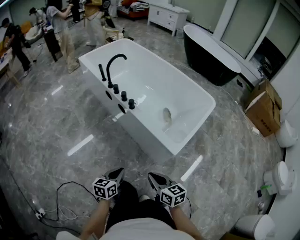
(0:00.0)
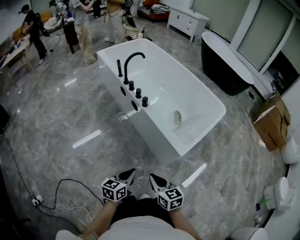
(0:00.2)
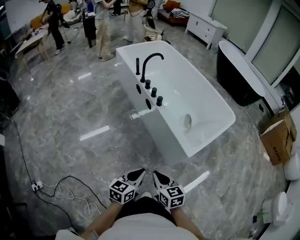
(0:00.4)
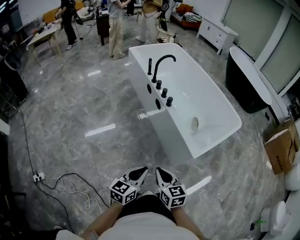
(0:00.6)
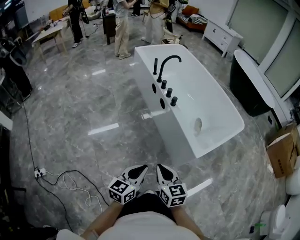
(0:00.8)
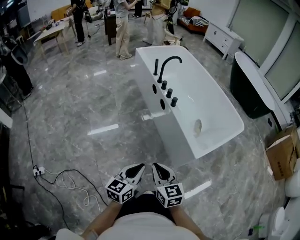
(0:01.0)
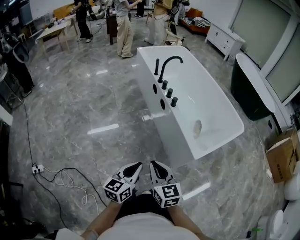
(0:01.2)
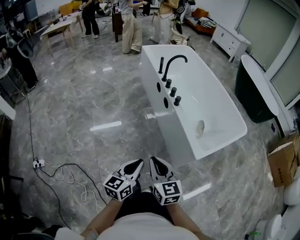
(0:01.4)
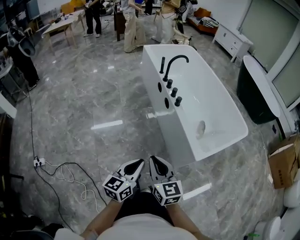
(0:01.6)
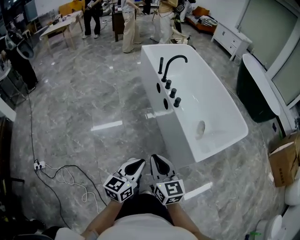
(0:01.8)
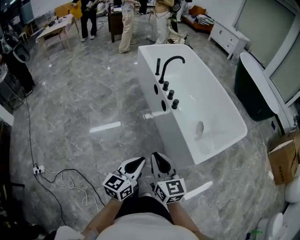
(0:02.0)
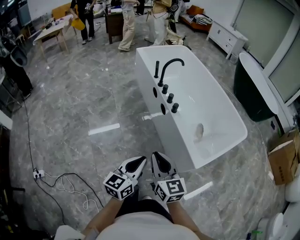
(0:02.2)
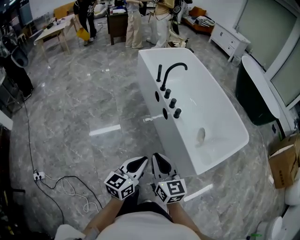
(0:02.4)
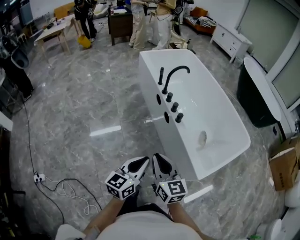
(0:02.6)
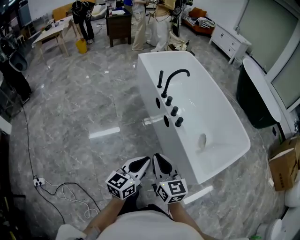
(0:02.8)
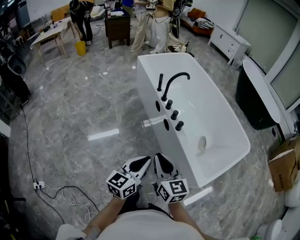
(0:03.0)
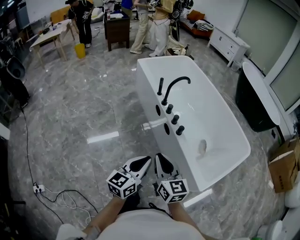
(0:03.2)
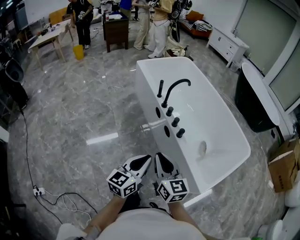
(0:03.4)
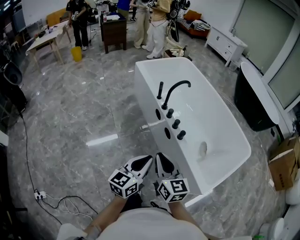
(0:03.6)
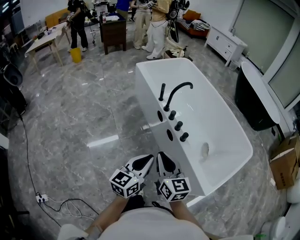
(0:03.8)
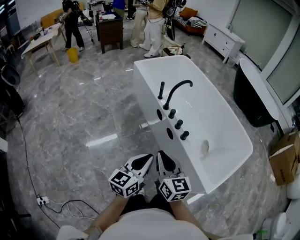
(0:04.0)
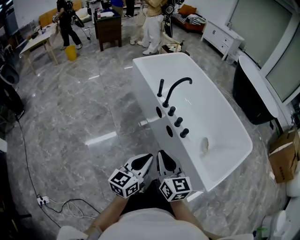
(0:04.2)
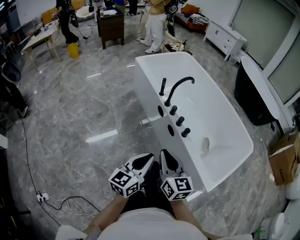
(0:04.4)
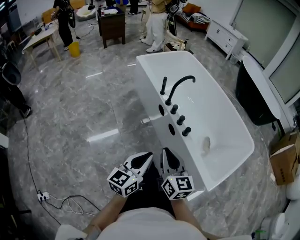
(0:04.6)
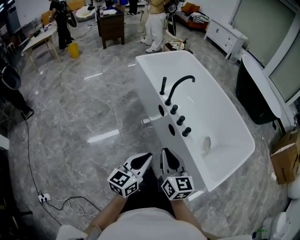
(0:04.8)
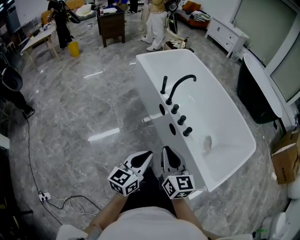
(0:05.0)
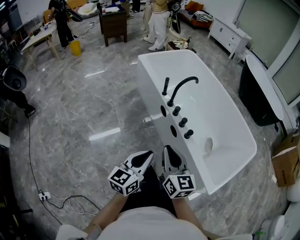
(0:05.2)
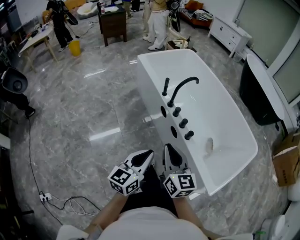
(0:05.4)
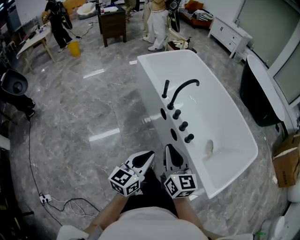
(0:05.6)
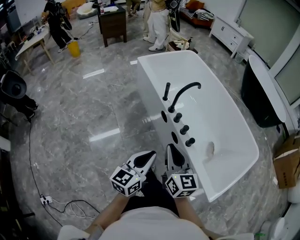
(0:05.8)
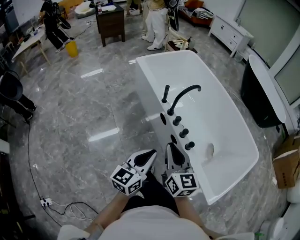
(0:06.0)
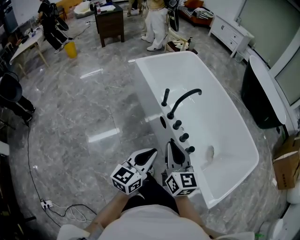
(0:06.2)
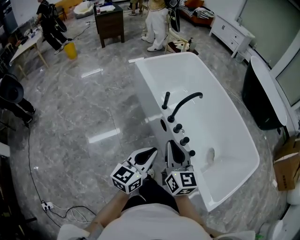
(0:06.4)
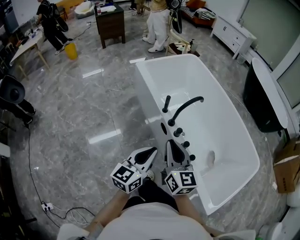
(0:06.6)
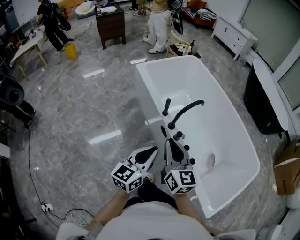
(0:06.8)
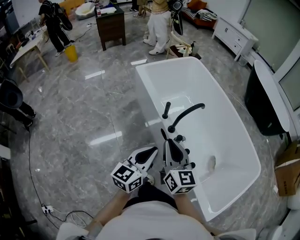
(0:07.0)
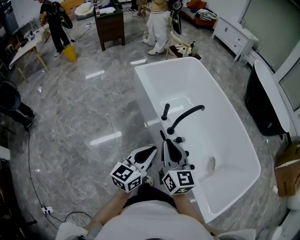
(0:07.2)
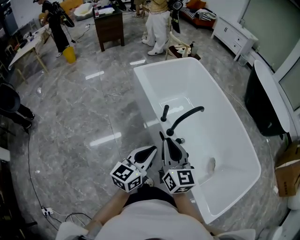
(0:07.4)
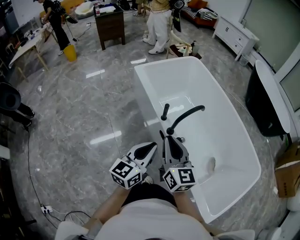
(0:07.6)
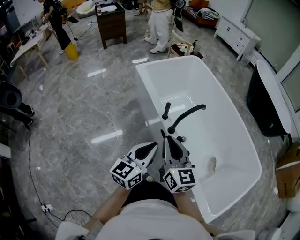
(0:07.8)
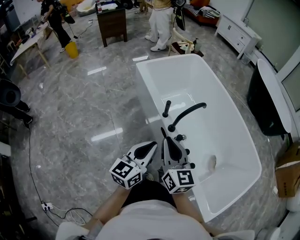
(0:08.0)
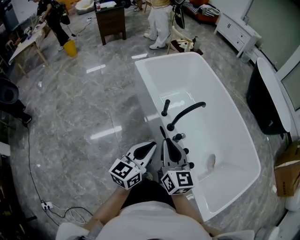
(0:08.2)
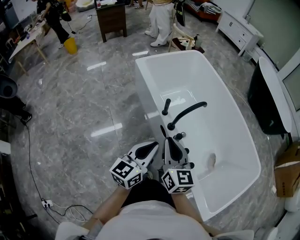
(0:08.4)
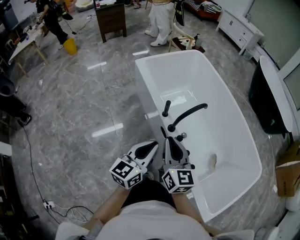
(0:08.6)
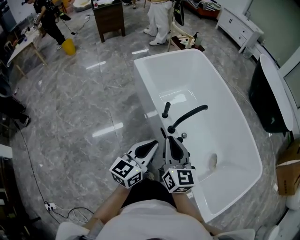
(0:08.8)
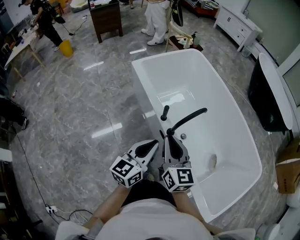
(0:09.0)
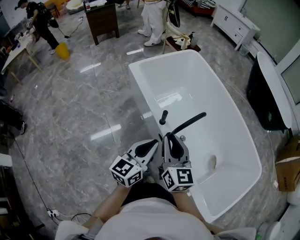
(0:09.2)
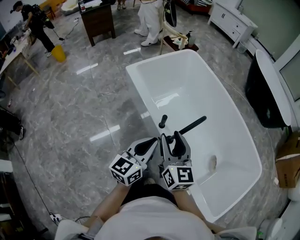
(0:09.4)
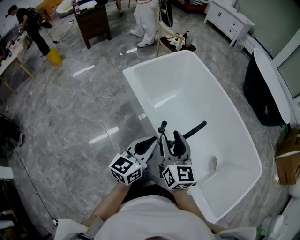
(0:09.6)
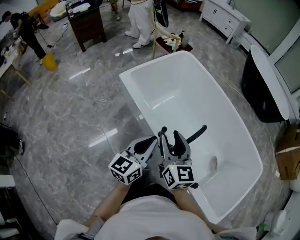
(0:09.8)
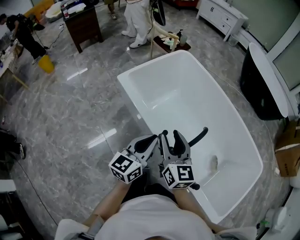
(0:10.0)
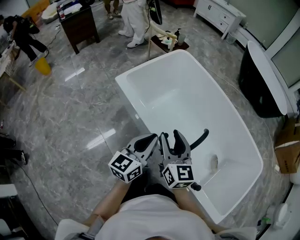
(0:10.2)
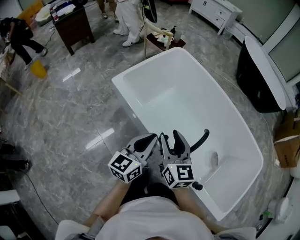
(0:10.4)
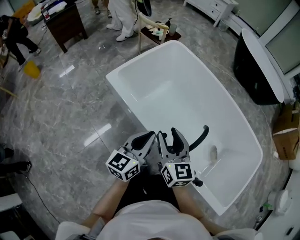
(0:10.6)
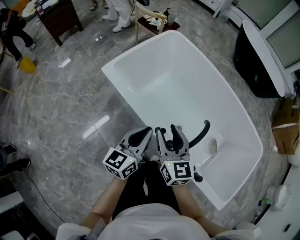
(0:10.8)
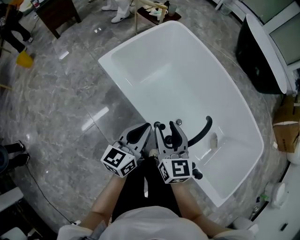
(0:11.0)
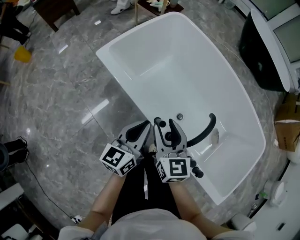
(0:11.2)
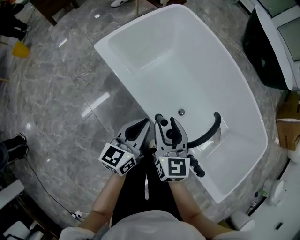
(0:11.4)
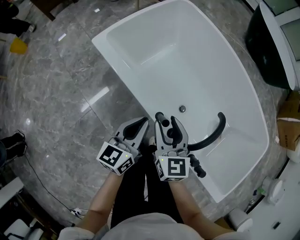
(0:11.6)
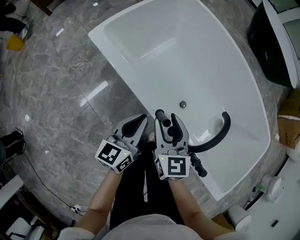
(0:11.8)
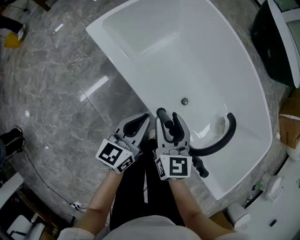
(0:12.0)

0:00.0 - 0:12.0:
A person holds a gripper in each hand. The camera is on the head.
0:00.0 - 0:01.6: The right gripper heads to the left and upward, covering about 15 cm, and changes its angle by approximately 30 degrees; the left gripper travels upward and backward by some 15 cm, and changes its angle by approximately 30 degrees.
0:01.6 - 0:03.0: Both grippers move forward, roughly 20 cm.
0:03.0 - 0:04.4: Both grippers move forward and to the left, approximately 10 cm.
0:04.4 - 0:06.0: Both grippers travel together forward, approximately 15 cm.
0:06.0 - 0:07.6: Both grippers move forward, some 20 cm.
0:07.6 - 0:09.0: Both grippers travel together forward, some 5 cm.
0:09.0 - 0:10.4: Both grippers move forward, roughly 20 cm. The right gripper opens.
0:10.4 - 0:12.0: The two grippers go about 20 cm downward.

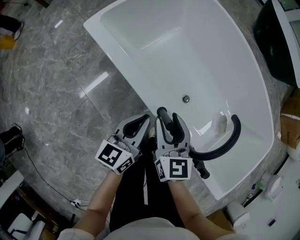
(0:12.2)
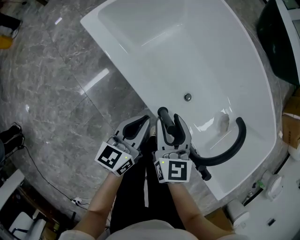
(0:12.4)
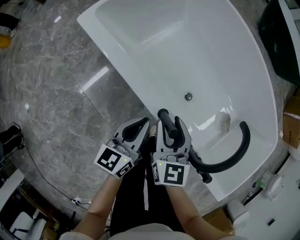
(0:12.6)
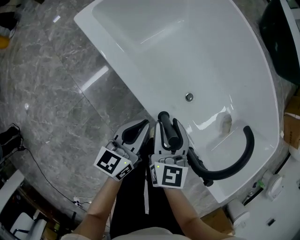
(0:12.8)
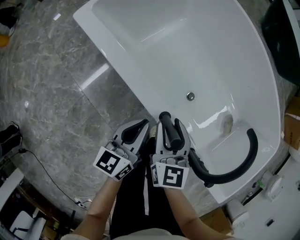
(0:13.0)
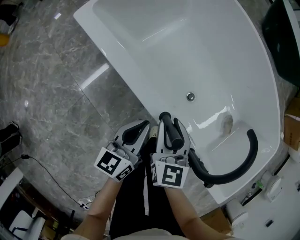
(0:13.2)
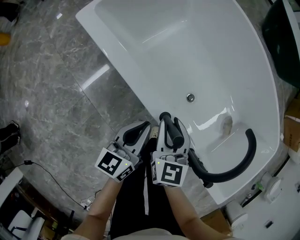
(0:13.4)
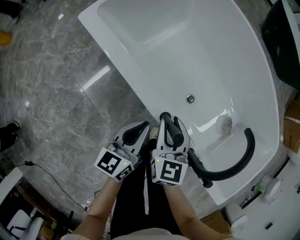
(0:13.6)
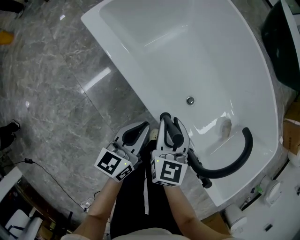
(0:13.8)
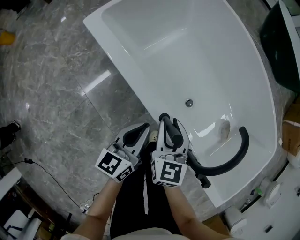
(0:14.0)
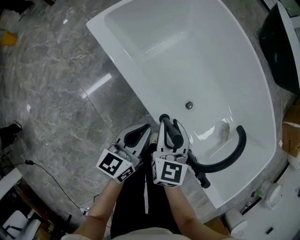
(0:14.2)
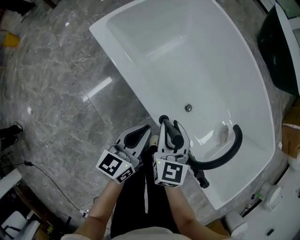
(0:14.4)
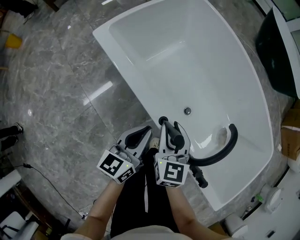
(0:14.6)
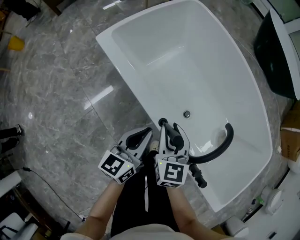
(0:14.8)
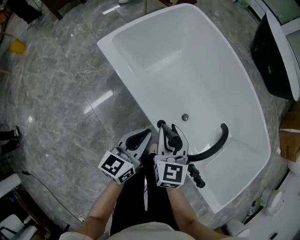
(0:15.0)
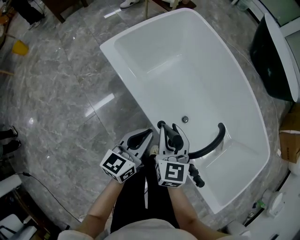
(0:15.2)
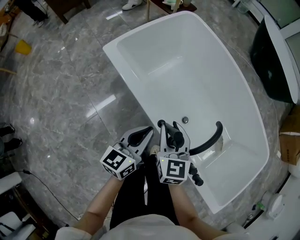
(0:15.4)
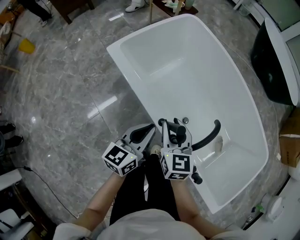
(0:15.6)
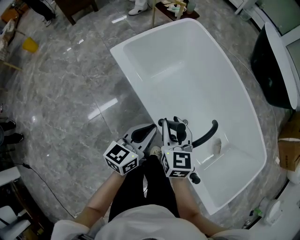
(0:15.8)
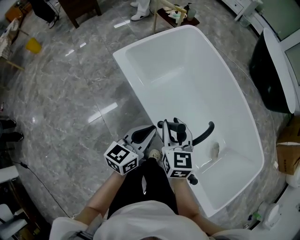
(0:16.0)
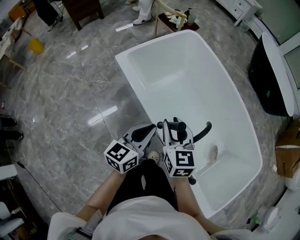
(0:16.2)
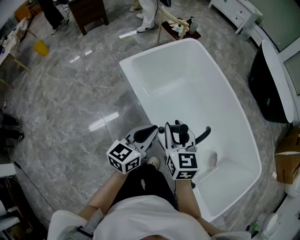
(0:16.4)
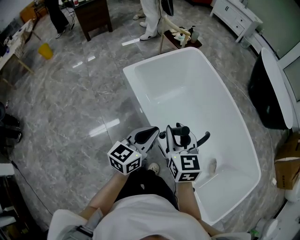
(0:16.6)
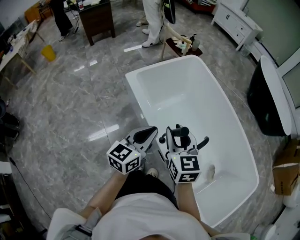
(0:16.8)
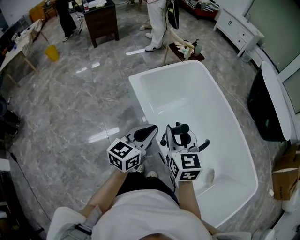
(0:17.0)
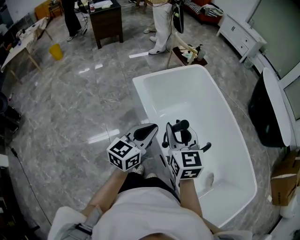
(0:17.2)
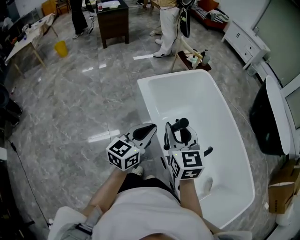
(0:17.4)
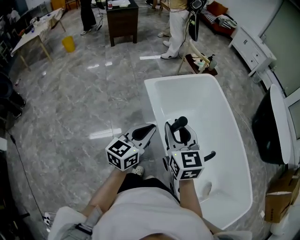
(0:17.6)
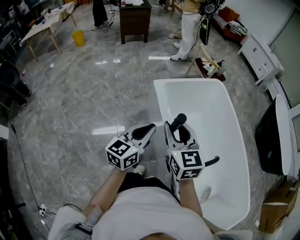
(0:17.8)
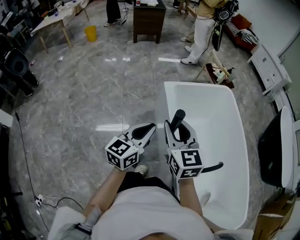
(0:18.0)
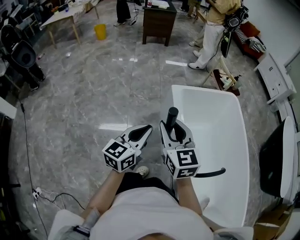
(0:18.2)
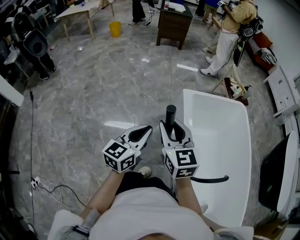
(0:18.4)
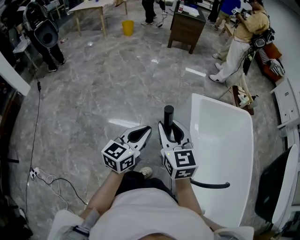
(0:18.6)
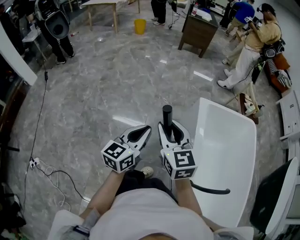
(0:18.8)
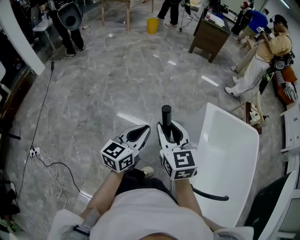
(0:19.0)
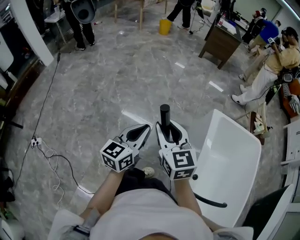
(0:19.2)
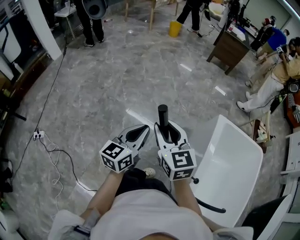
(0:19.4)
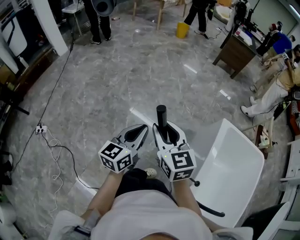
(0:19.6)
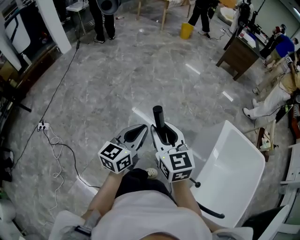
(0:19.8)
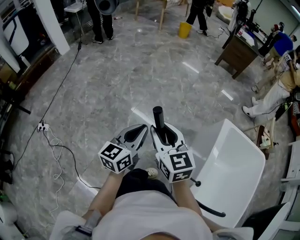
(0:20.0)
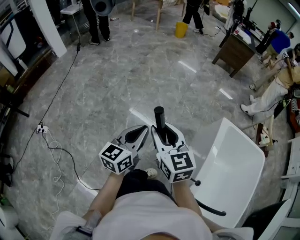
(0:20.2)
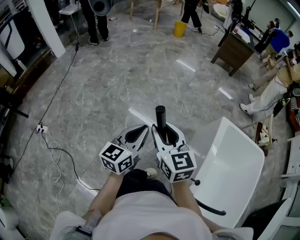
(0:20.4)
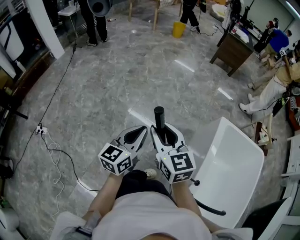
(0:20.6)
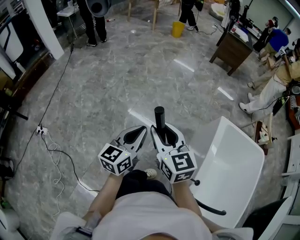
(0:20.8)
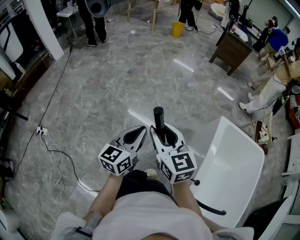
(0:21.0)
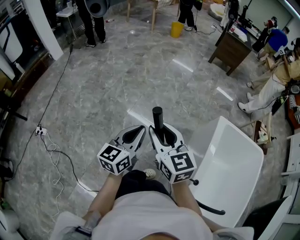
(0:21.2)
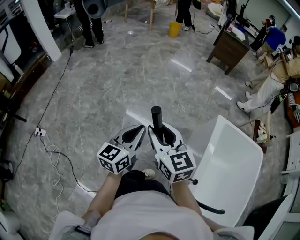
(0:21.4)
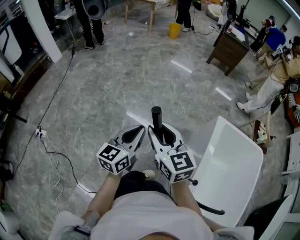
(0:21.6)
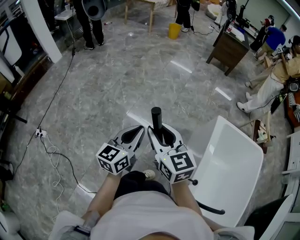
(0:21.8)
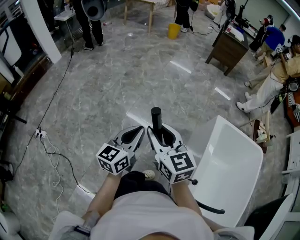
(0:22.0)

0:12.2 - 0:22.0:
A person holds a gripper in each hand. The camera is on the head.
0:12.2 - 0:13.6: The two grippers go approximately 5 cm downward.
0:13.6 - 0:15.0: Both grippers travel together upward, some 10 cm.
0:15.0 - 0:16.4: Both grippers travel together upward, about 15 cm.
0:16.4 - 0:17.8: The grippers both shift to the left and upward by approximately 15 cm. The right gripper swivels approximately 20 degrees. Meanwhile the left gripper rotates about 20 degrees.
0:17.8 - 0:19.2: The left gripper moves some 25 cm, and rotates some 40 degrees, while the right gripper ends up some 30 cm from where it was, and rotates approximately 40 degrees.
0:19.2 - 0:20.6: The grippers both shift to the left by about 5 cm.
0:20.6 - 0:22.0: There are only small adjustments of the grippers.

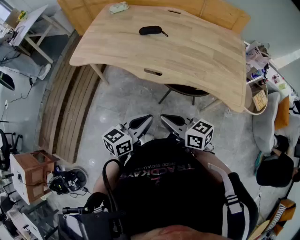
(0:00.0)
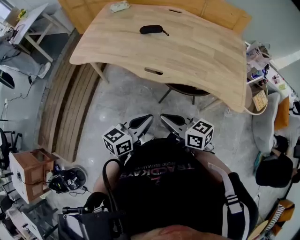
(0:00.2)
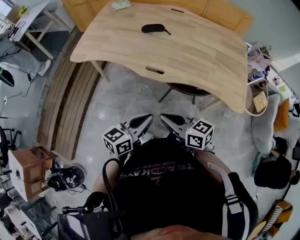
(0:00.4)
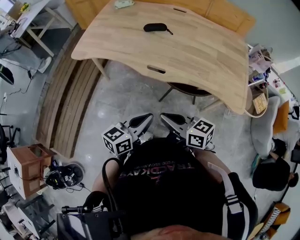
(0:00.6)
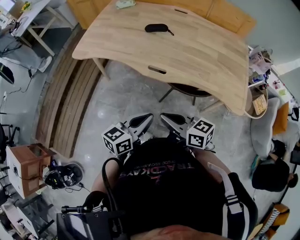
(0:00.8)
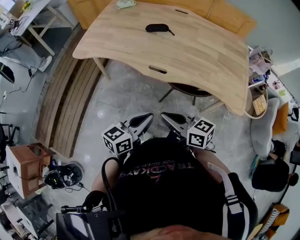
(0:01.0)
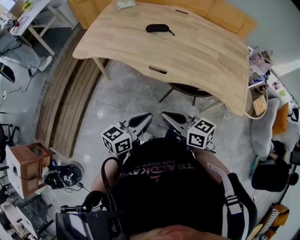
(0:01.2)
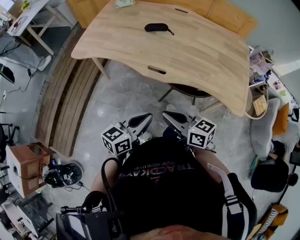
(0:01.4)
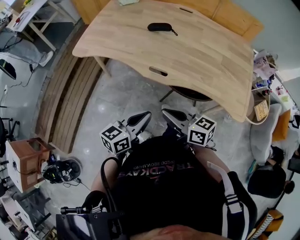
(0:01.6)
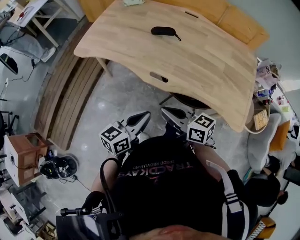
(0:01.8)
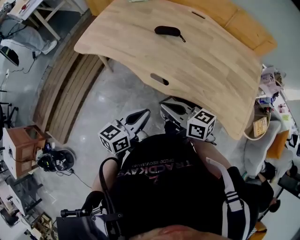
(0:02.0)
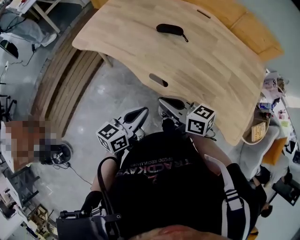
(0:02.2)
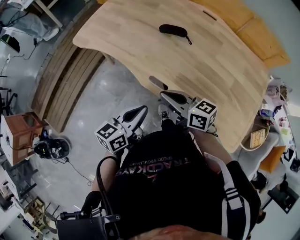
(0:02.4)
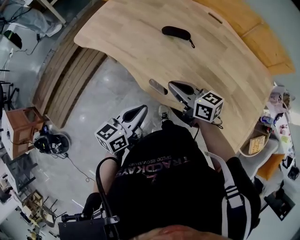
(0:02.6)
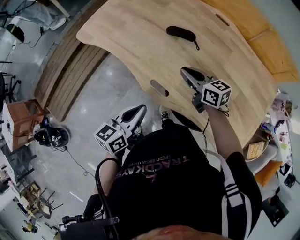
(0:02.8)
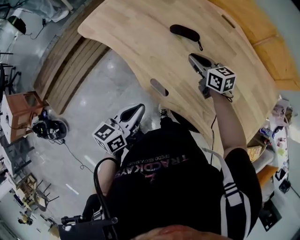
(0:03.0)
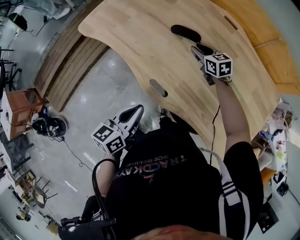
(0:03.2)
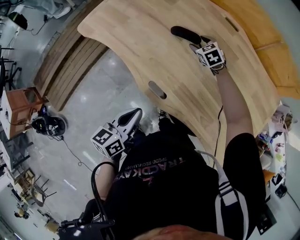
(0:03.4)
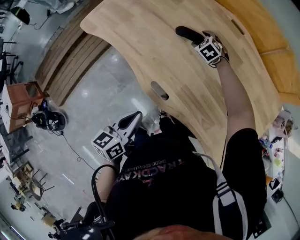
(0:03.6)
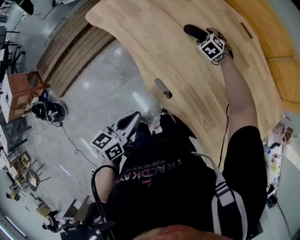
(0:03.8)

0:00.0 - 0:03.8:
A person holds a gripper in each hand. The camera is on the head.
0:00.0 - 0:01.2: The grippers move only a little.
0:01.2 - 0:02.6: The left gripper shifts roughly 20 cm forward, and changes its angle by roughly 30 degrees, while the right gripper shifts approximately 25 cm forward.
0:02.6 - 0:03.8: The right gripper heads forward and downward, covering some 40 cm, tilts its fingers about 50 degrees downward, and opens up. Meanwhile the left gripper turns by approximately 20 degrees.
